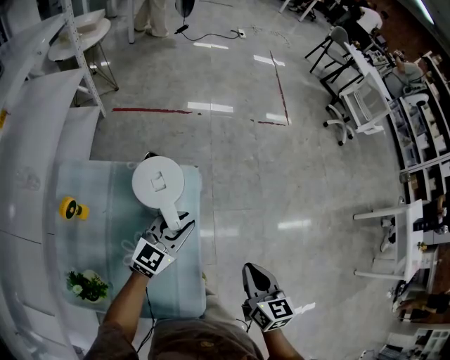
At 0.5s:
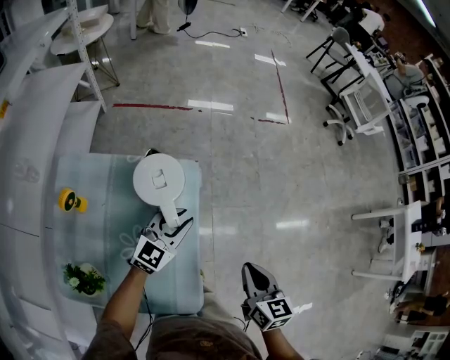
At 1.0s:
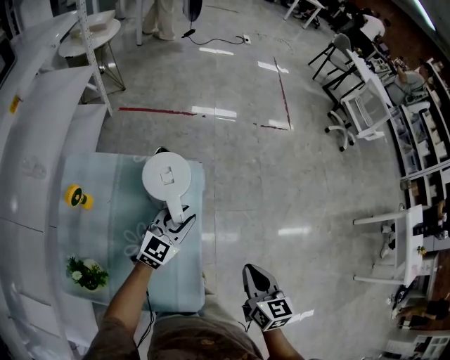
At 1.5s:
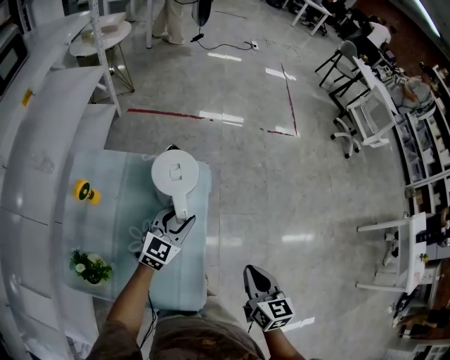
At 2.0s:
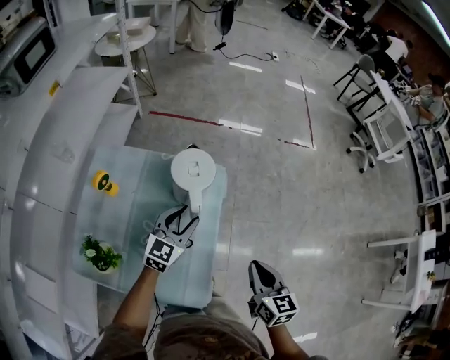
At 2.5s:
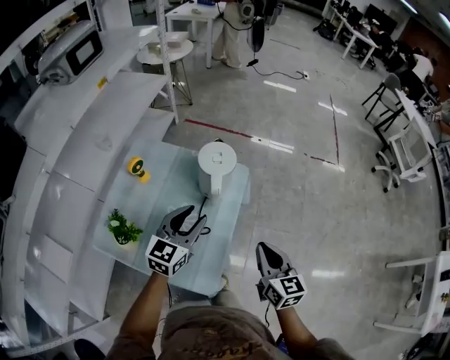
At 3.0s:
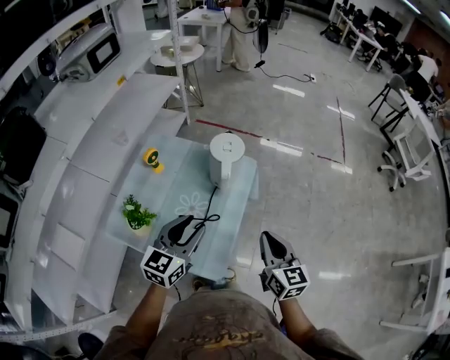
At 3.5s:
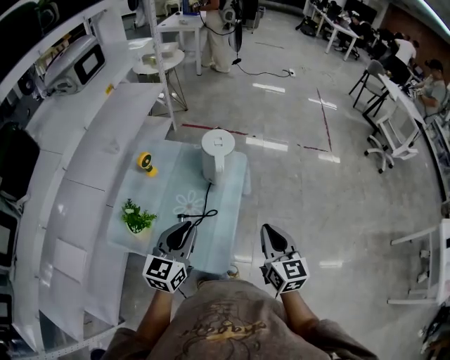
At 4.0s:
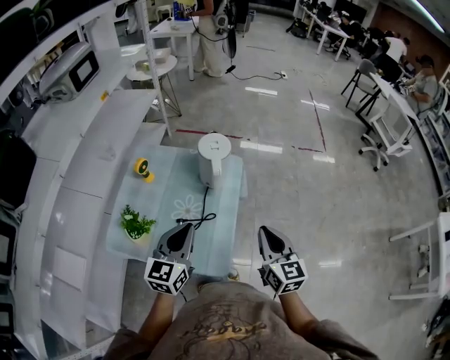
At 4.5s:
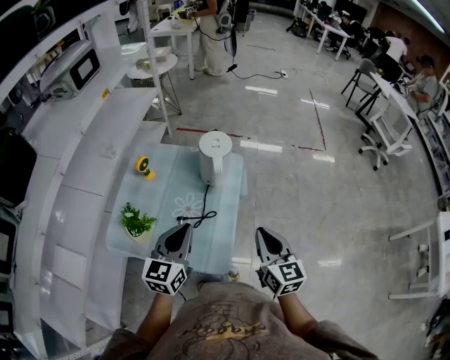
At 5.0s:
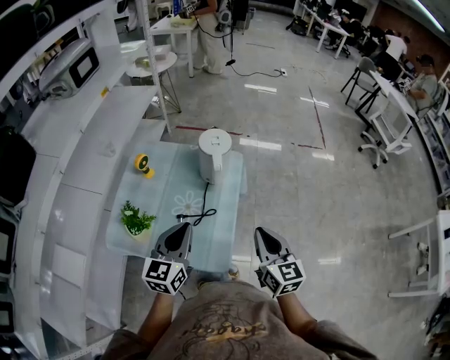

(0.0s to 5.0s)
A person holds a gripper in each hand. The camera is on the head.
0.0s - 2.5s: The left gripper moves backward, upward and to the left, roughly 20 cm, and rotates some 30 degrees, while the right gripper goes about 5 cm upward, and changes its angle by some 20 degrees.
2.5s - 5.0s: The right gripper travels backward and upward by some 10 cm. The left gripper shifts approximately 15 cm backward, and closes its fingers.

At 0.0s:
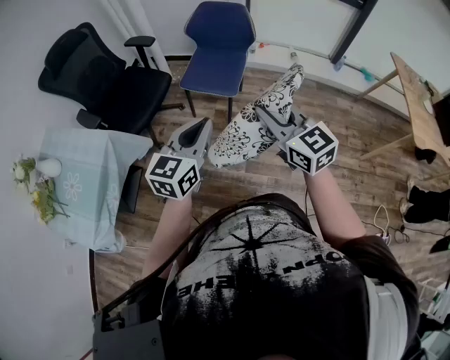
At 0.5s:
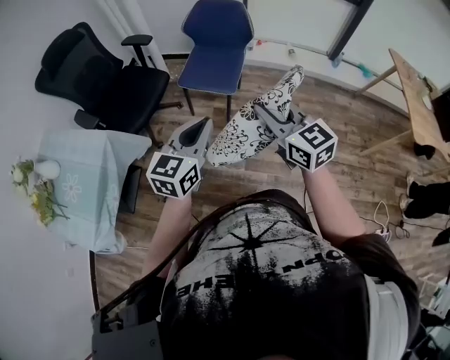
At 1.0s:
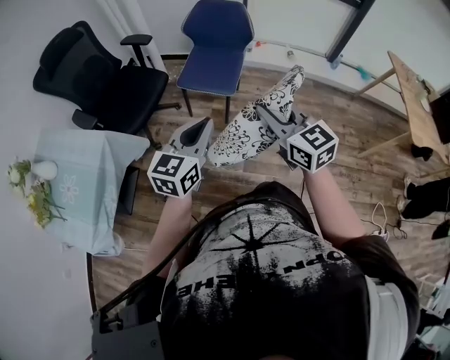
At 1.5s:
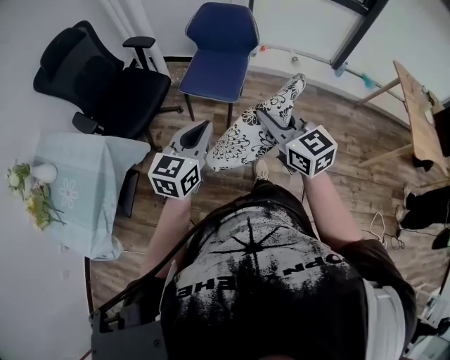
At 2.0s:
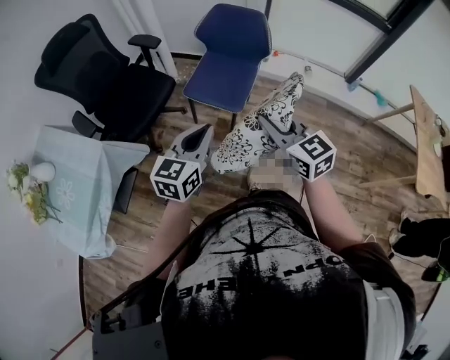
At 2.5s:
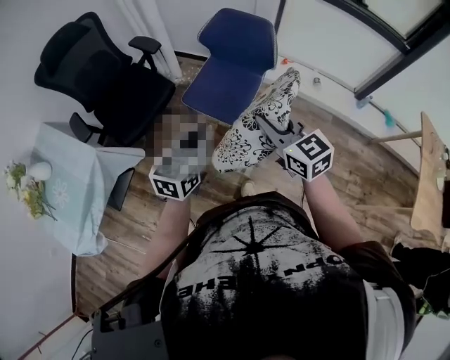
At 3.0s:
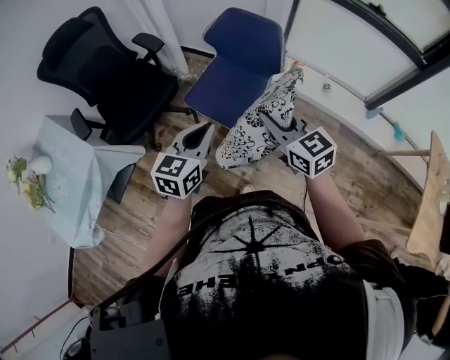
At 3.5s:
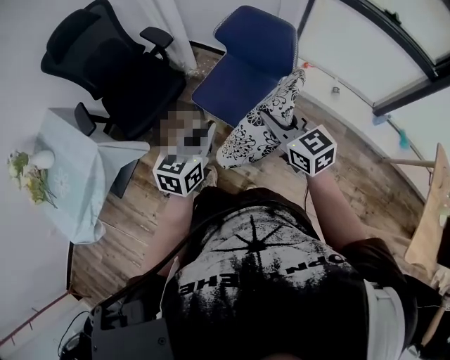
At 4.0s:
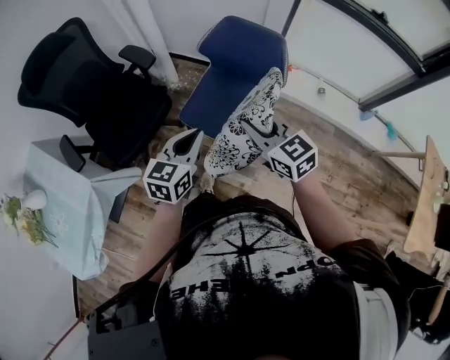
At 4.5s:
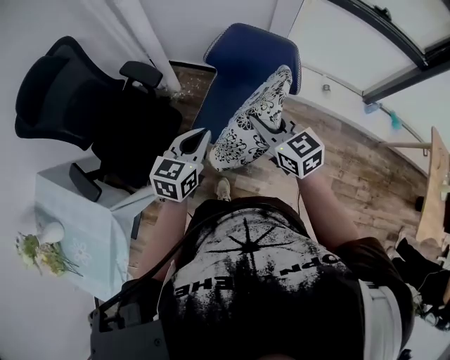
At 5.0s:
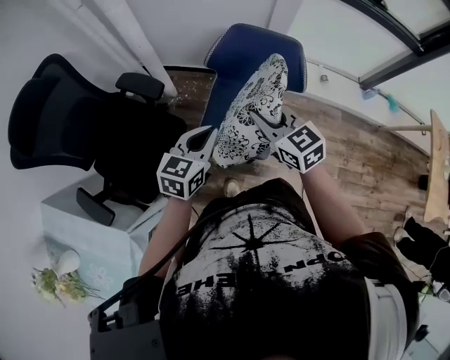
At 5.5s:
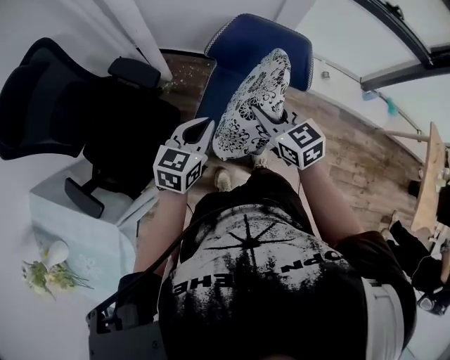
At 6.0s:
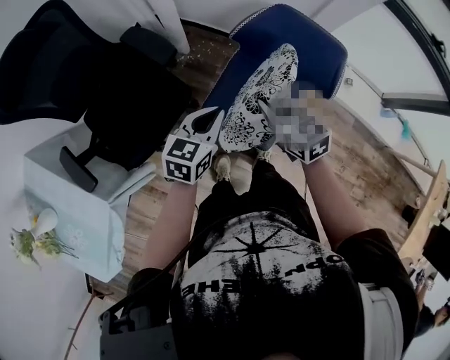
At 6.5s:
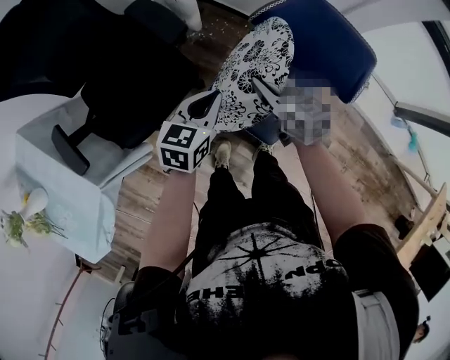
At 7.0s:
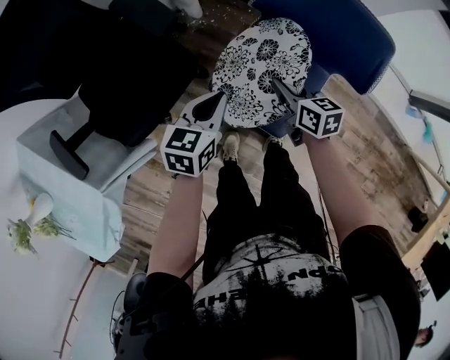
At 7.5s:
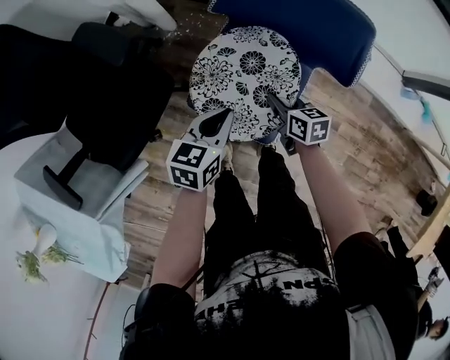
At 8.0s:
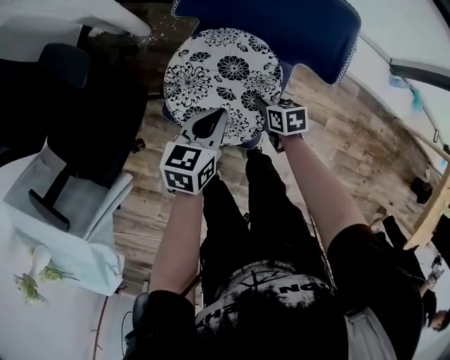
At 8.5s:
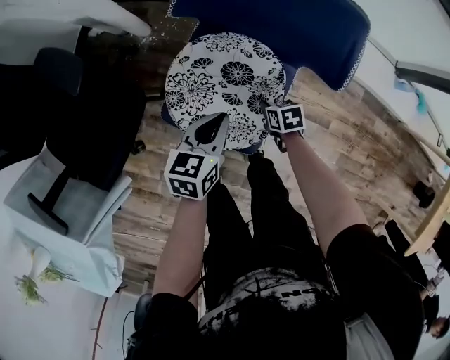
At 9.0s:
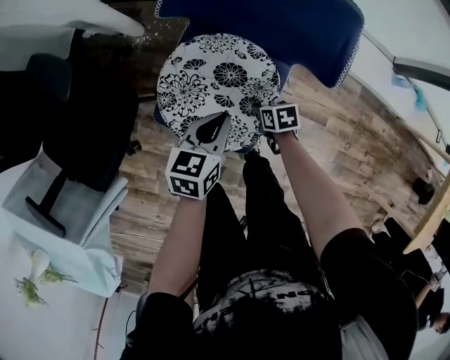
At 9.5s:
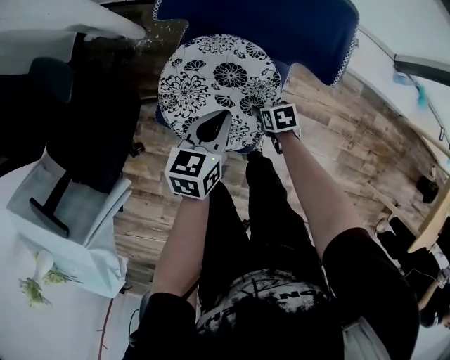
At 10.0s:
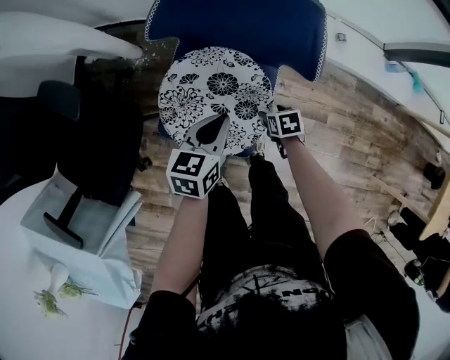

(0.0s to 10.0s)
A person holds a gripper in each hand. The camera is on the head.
0.0s - 2.0s: The two grippers go roughly 15 cm forward.
2.0s - 4.0s: The two grippers go roughly 25 cm forward.
4.0s - 6.0s: Both grippers move forward, downward and to the left, some 25 cm.
6.0s - 8.0s: The right gripper moves downward and to the right, some 35 cm, and rotates approximately 40 degrees. The left gripper shifts about 20 cm downward and to the right.
8.0s - 10.0s: The right gripper travels to the right by about 10 cm, and opens its fingers.

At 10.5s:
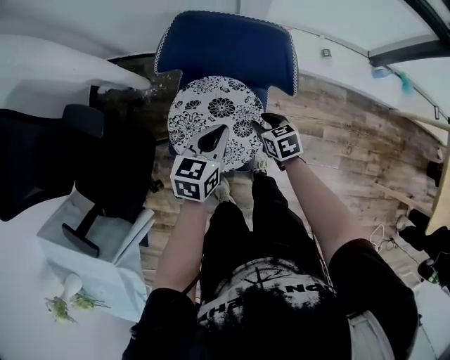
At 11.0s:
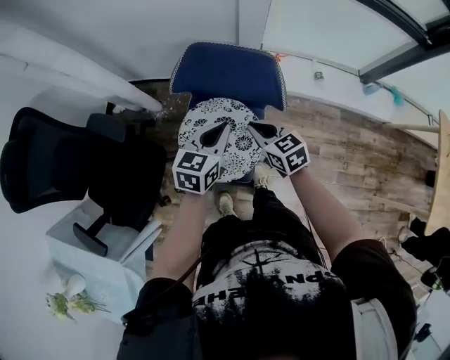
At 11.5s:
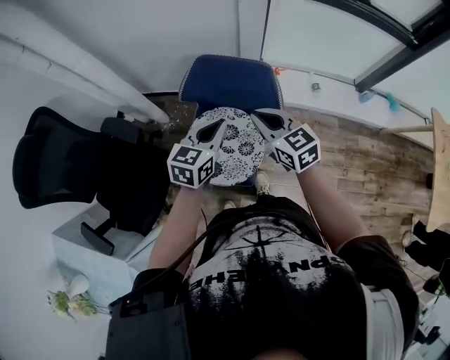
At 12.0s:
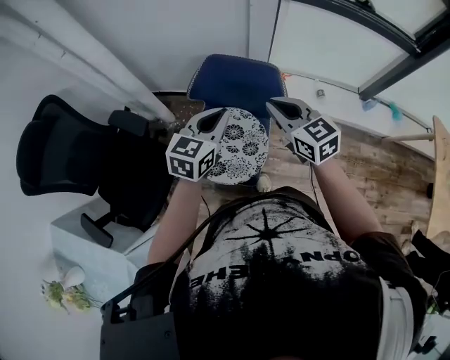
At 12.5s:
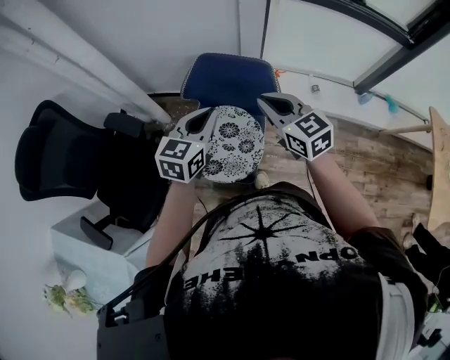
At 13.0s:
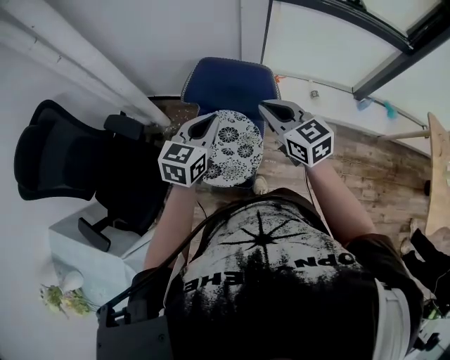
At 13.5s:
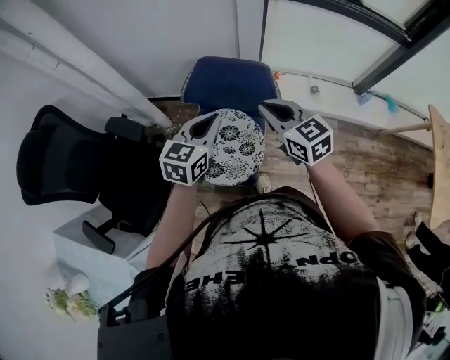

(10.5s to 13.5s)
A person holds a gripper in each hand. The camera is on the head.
10.5s - 12.0s: The right gripper is displaced upward by some 35 cm, tilts its fingers some 30 degrees upward, and closes its fingers, while the left gripper travels upward by some 20 cm.
12.0s - 13.5s: Neither gripper changes place.

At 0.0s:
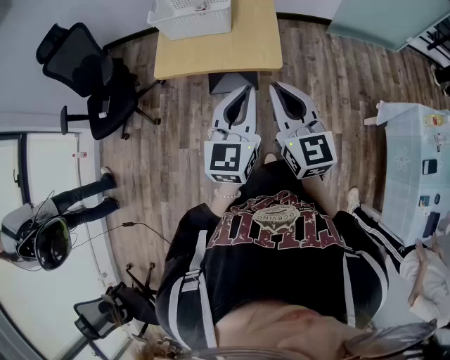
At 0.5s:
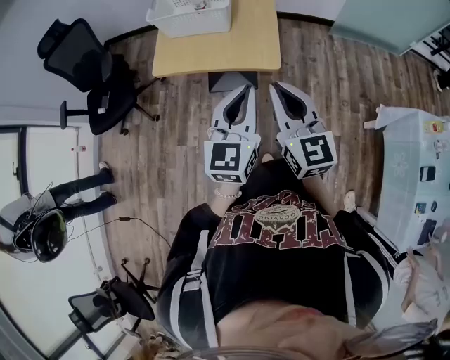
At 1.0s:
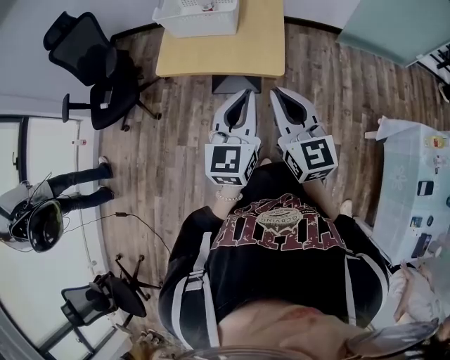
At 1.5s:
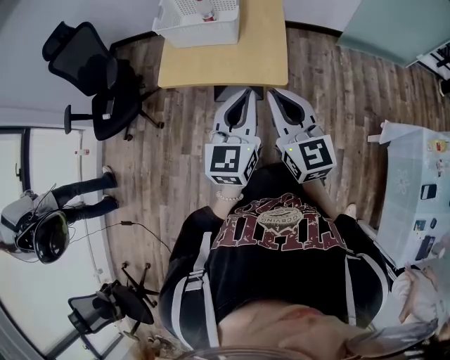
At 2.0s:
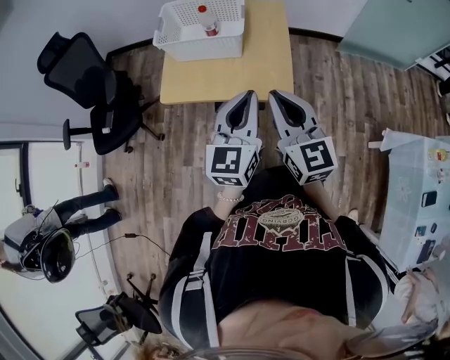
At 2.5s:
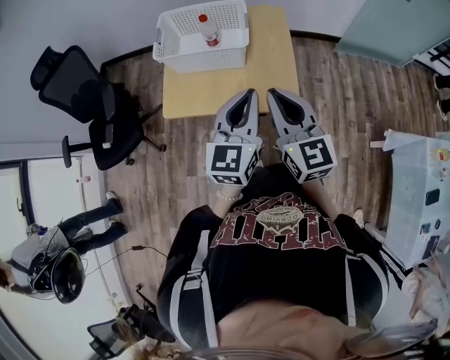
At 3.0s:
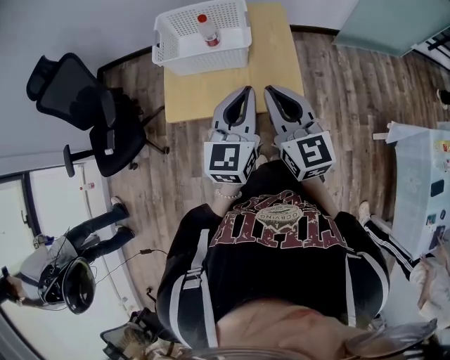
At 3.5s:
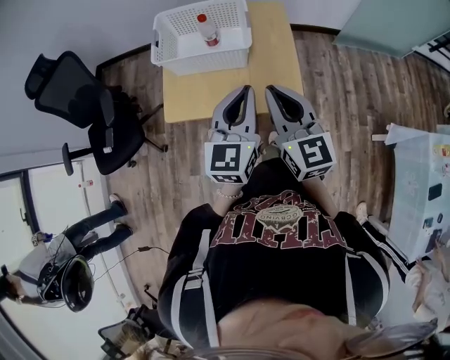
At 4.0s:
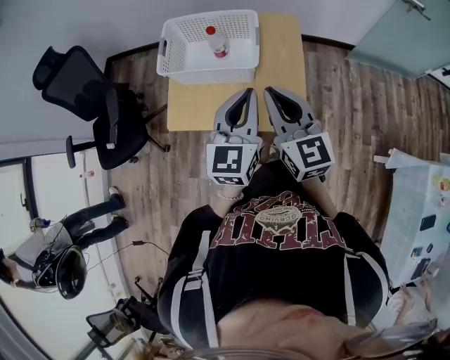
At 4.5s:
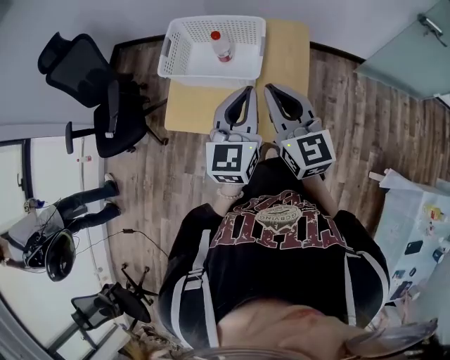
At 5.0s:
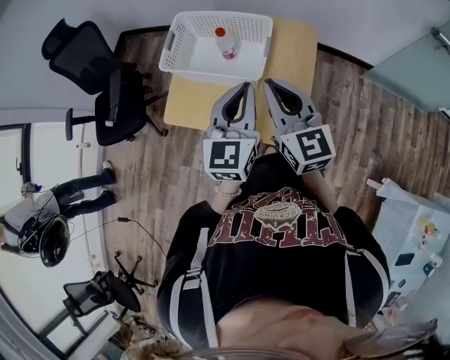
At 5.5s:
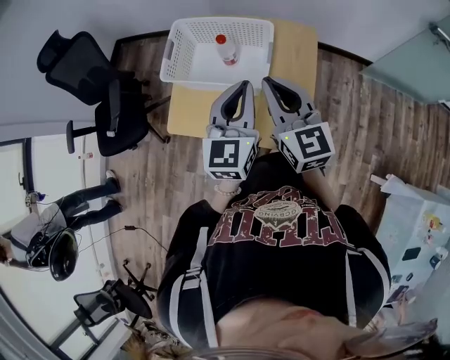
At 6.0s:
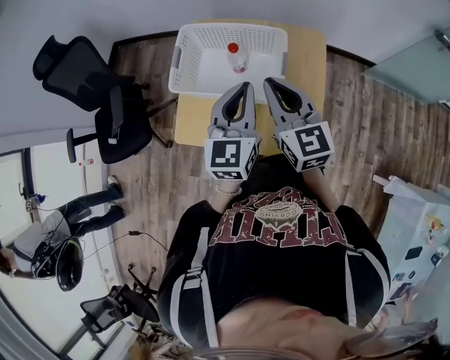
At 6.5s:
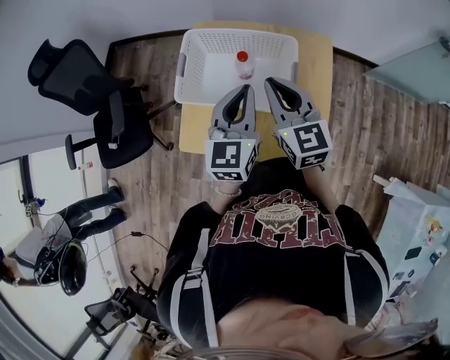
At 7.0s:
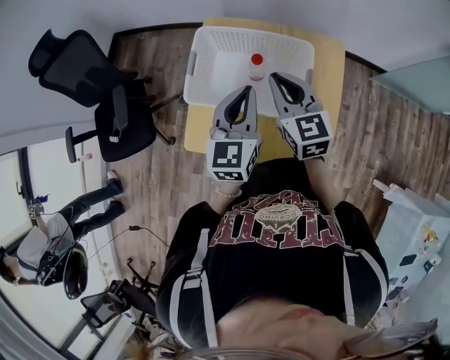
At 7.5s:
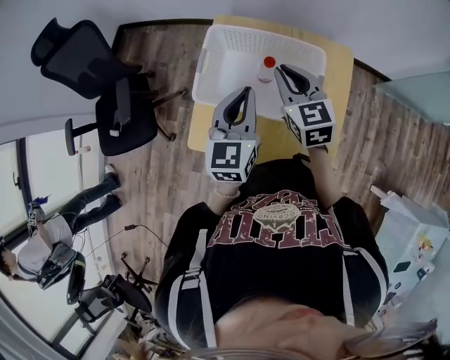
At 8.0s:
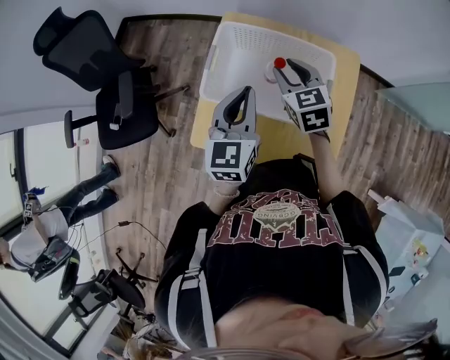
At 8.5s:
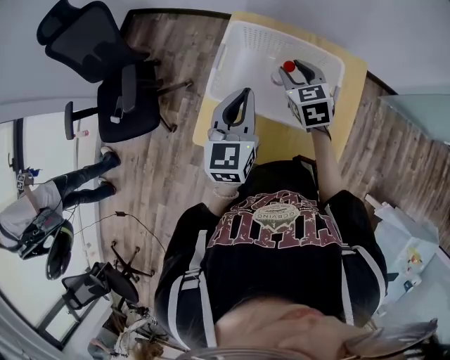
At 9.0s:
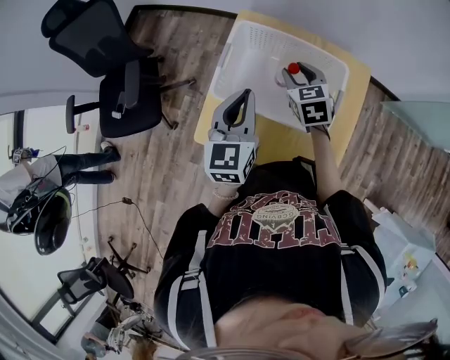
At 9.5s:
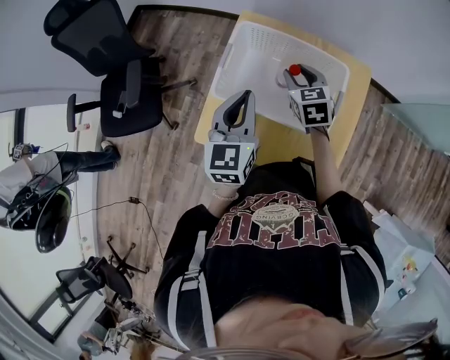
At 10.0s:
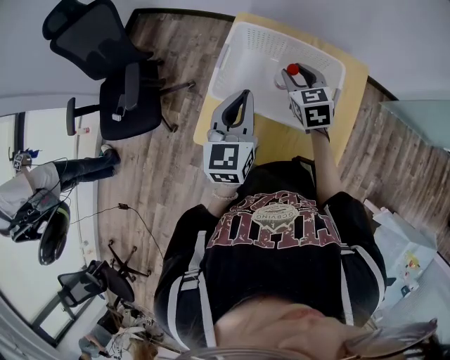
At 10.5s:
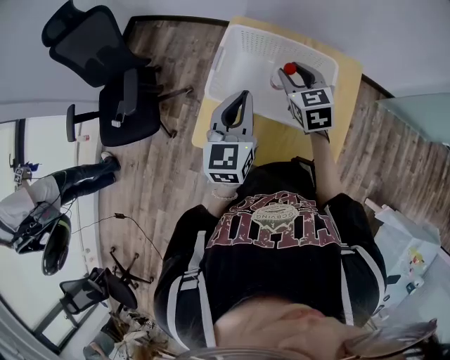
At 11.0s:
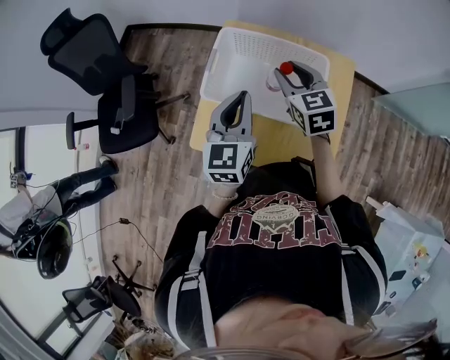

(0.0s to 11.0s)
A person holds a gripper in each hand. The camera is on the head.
0.0s - 2.0s: The grippers both shift forward by approximately 15 cm.
2.0s - 3.5s: Both grippers travel together forward and to the left, about 10 cm.
3.5s - 5.5s: The grippers both shift forward by about 15 cm.
5.5s - 7.5s: Both grippers travel together forward, to the left and downward, roughly 20 cm.
7.5s - 9.0s: The right gripper is displaced downward by approximately 10 cm, and opens. Meanwhile the left gripper moves to the left, roughly 5 cm.
9.0s - 11.0s: The right gripper goes approximately 10 cm upward.
